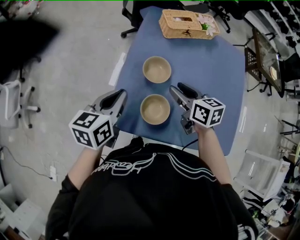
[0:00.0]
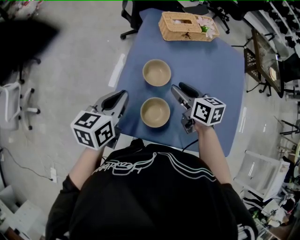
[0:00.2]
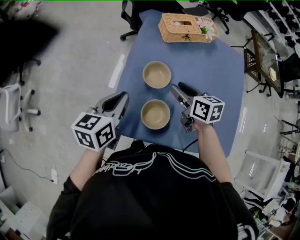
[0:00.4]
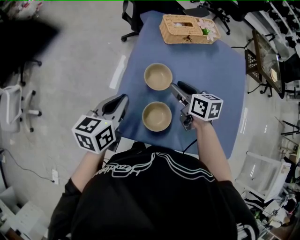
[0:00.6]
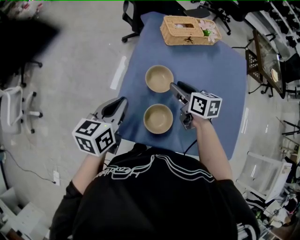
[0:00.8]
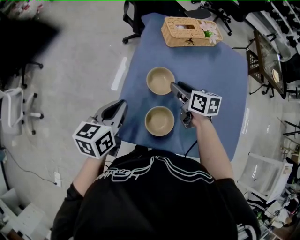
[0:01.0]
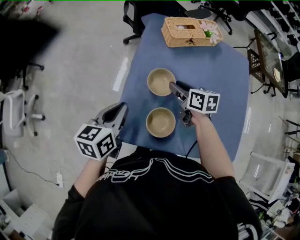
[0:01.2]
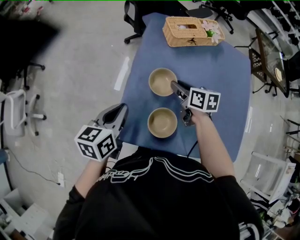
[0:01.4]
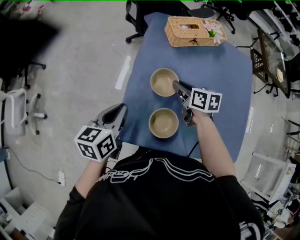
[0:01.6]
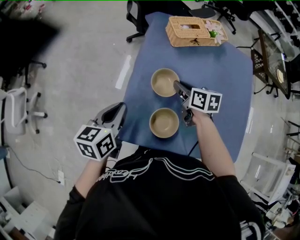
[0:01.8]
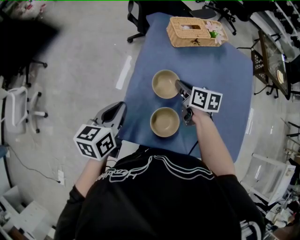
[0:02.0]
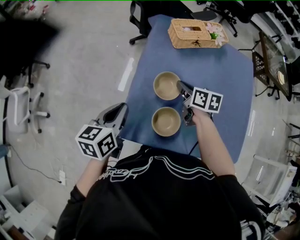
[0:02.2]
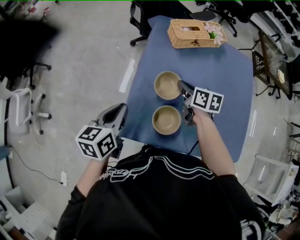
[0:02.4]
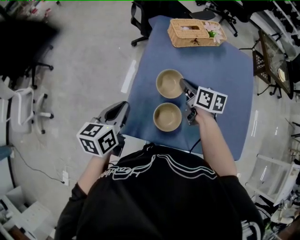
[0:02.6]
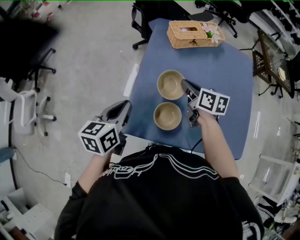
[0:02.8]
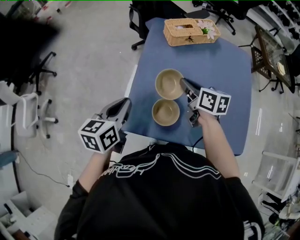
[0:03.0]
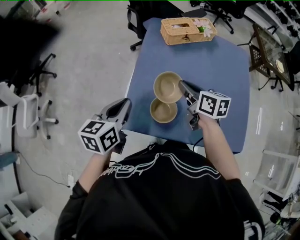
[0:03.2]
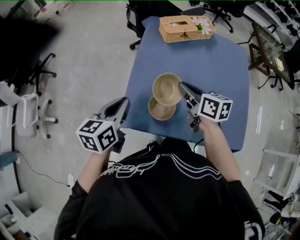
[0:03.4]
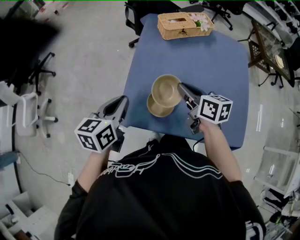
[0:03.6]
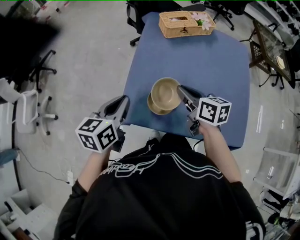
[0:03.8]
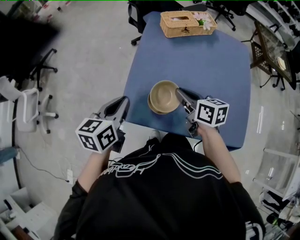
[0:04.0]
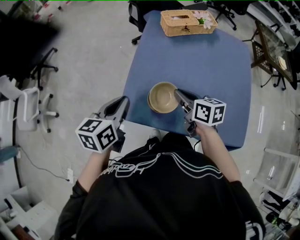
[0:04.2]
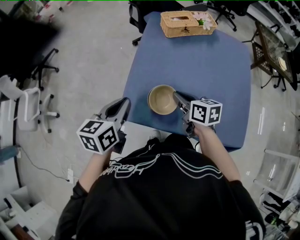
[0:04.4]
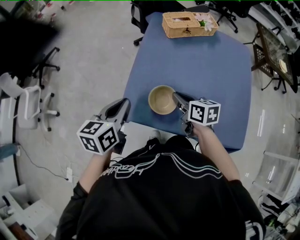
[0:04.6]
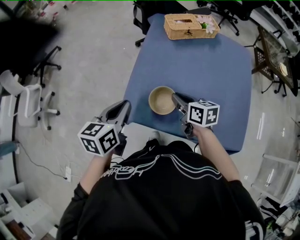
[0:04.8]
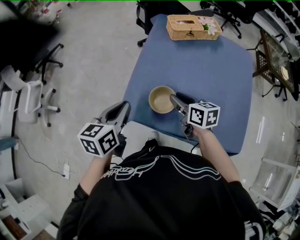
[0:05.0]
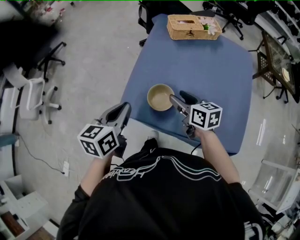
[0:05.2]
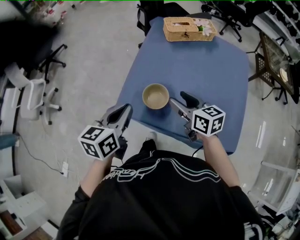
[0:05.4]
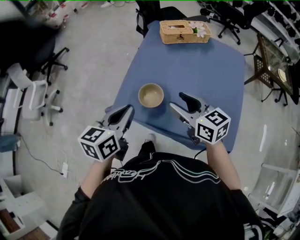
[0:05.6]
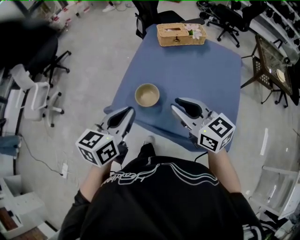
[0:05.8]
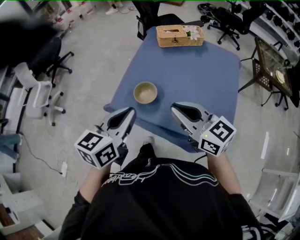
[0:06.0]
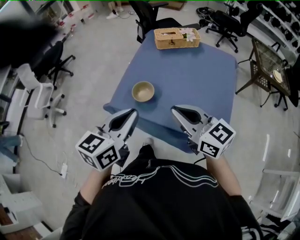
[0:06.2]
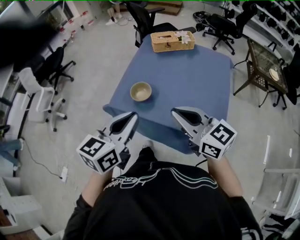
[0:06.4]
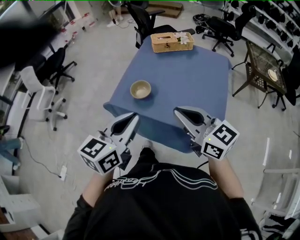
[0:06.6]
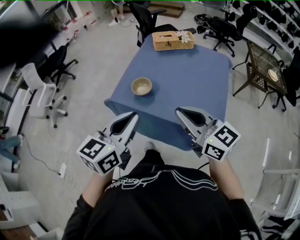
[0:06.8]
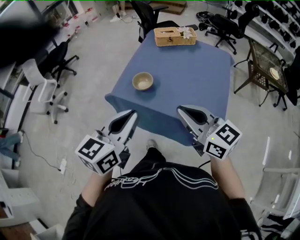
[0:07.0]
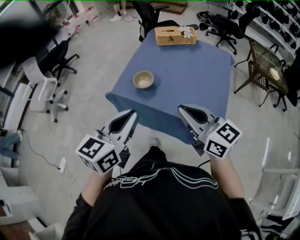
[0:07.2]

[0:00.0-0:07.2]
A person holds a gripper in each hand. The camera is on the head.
0:00.0 to 0:01.4: The right gripper heads forward and downward, covering roughly 10 cm.
0:01.4 to 0:02.8: The right gripper travels upward by approximately 5 cm, and closes up.
0:02.8 to 0:04.4: The right gripper shifts roughly 15 cm backward. Meanwhile the left gripper moves backward, some 5 cm.
0:04.4 to 0:05.8: The right gripper travels upward and backward by about 20 cm, swivels approximately 40 degrees, and opens and closes again; the left gripper travels backward, upward and to the right by approximately 20 cm.
0:05.8 to 0:07.2: The grippers both shift backward by roughly 20 cm.

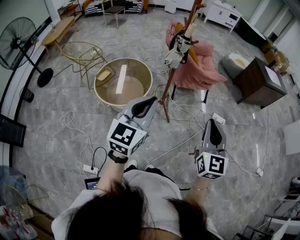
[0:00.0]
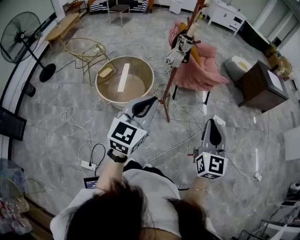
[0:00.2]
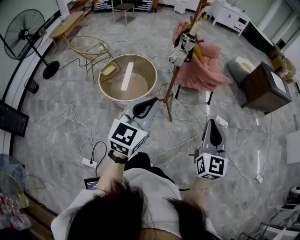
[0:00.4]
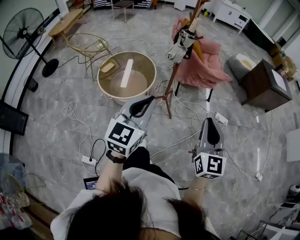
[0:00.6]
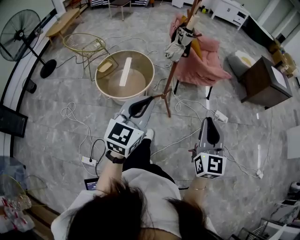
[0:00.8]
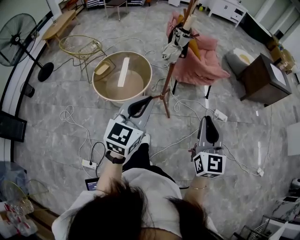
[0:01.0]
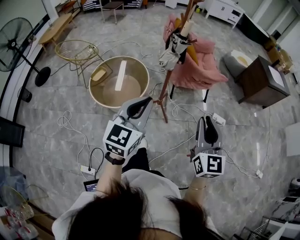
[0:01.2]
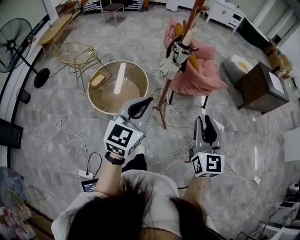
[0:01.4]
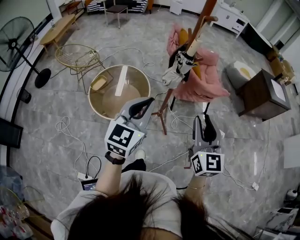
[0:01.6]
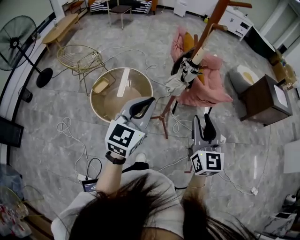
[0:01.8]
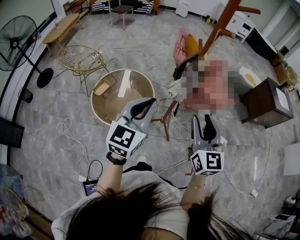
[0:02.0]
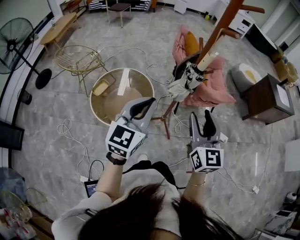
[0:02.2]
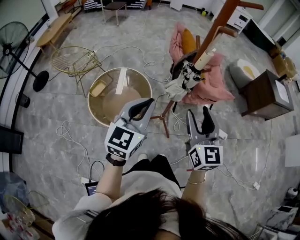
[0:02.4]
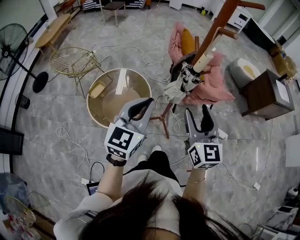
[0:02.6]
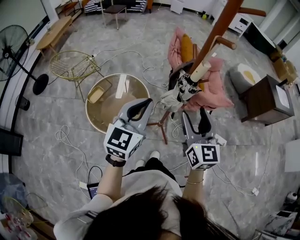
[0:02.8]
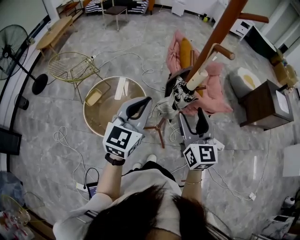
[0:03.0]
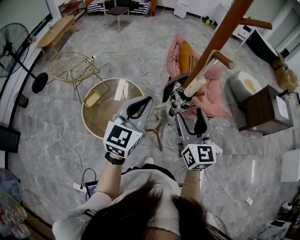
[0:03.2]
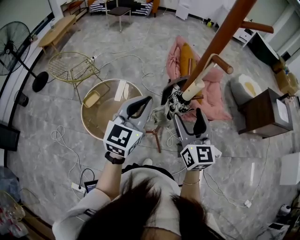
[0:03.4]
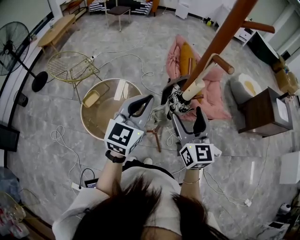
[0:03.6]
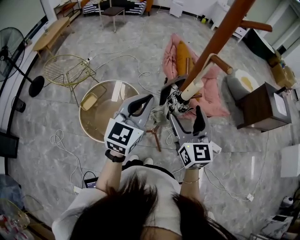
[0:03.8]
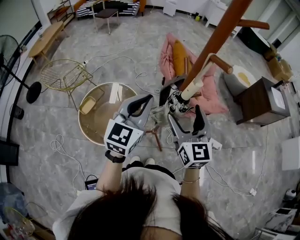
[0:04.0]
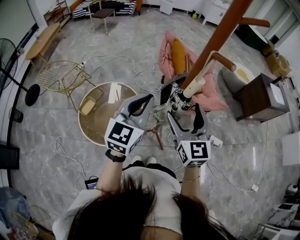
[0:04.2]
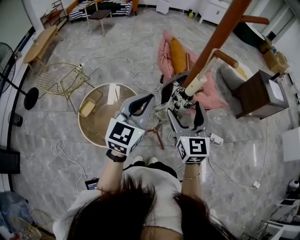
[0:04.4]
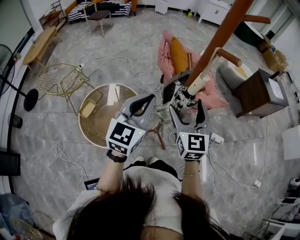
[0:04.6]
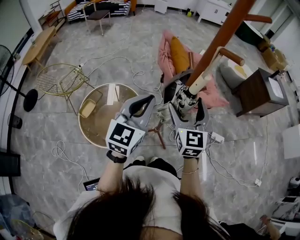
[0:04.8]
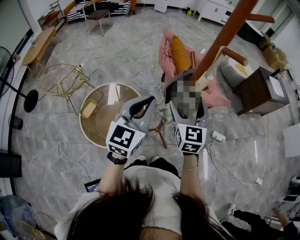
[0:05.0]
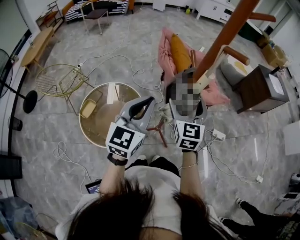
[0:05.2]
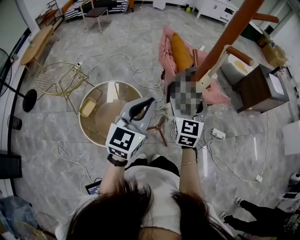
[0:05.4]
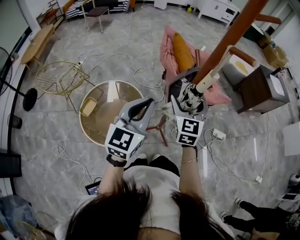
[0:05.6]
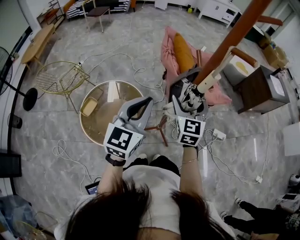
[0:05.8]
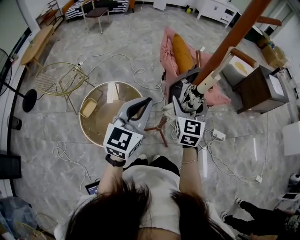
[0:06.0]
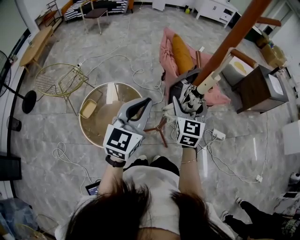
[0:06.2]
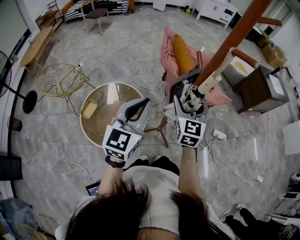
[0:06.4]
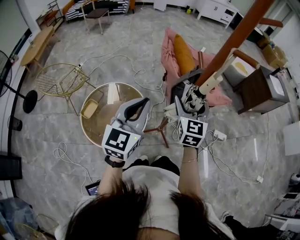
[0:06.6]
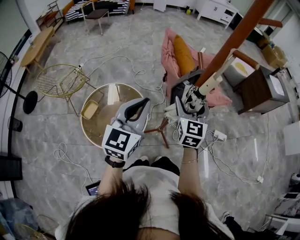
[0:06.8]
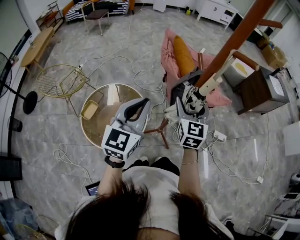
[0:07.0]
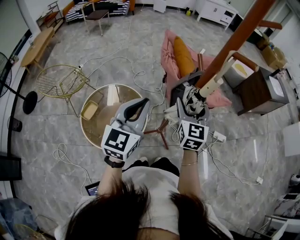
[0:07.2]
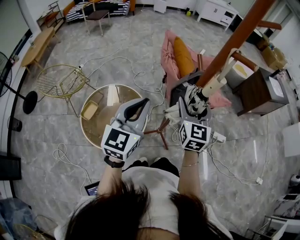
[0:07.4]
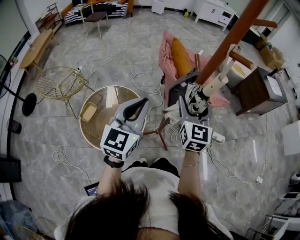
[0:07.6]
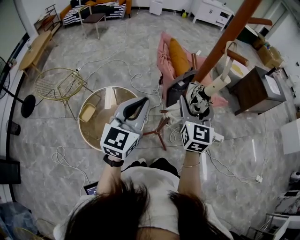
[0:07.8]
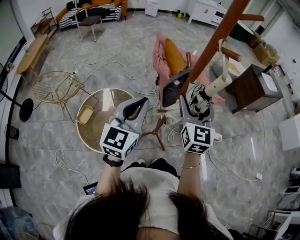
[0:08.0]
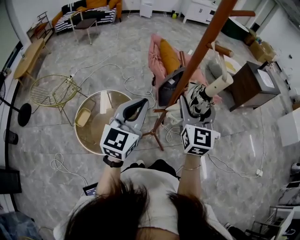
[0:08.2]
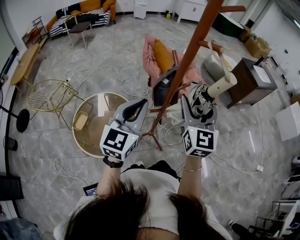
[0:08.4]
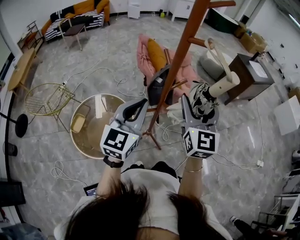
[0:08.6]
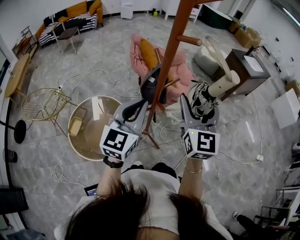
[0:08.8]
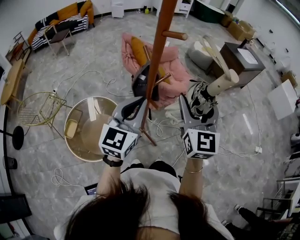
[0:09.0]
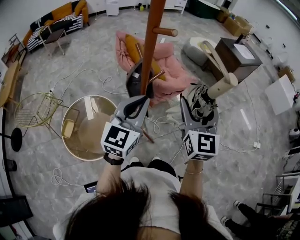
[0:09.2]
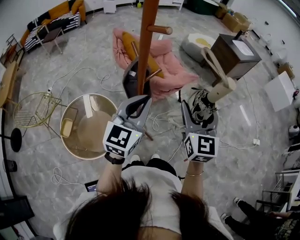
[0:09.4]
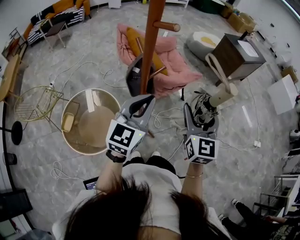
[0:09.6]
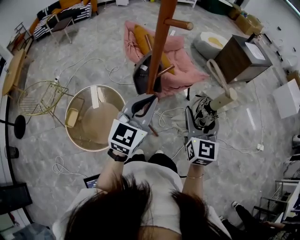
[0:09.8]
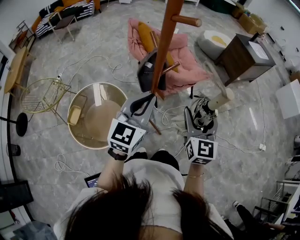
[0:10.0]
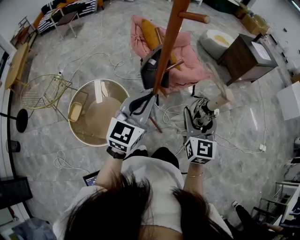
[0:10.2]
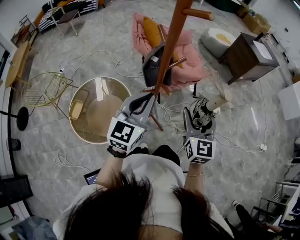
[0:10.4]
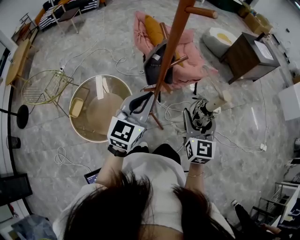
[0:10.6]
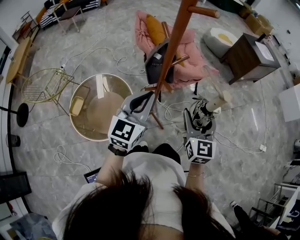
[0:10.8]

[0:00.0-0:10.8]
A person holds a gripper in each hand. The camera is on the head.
0:00.0 to 0:01.6: The grippers both shift forward by approximately 15 cm.
0:01.6 to 0:03.0: Both grippers travel together forward, approximately 20 cm. The right gripper opens its fingers.
0:03.0 to 0:04.6: The right gripper moves forward, approximately 5 cm.
0:04.6 to 0:06.2: The right gripper changes place by approximately 5 cm.
0:06.2 to 0:07.8: The right gripper travels upward by roughly 5 cm.
0:07.8 to 0:09.2: The left gripper shifts approximately 15 cm to the right. The right gripper moves to the right, upward and backward, some 20 cm.
0:09.2 to 0:10.8: The left gripper is displaced downward by some 10 cm. Meanwhile the right gripper heads downward, covering roughly 15 cm.

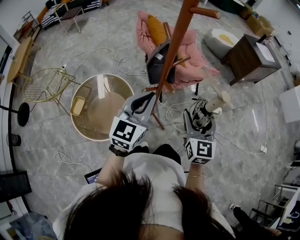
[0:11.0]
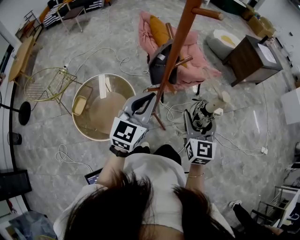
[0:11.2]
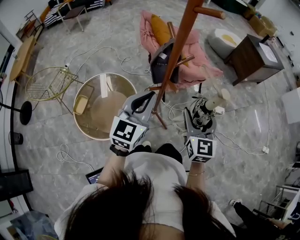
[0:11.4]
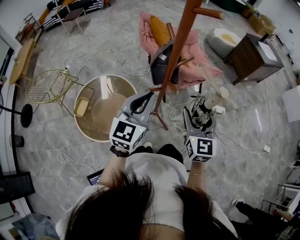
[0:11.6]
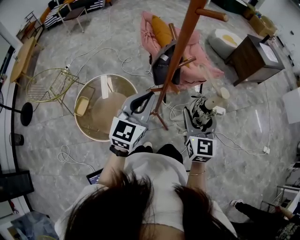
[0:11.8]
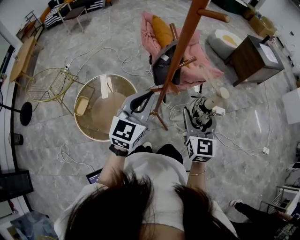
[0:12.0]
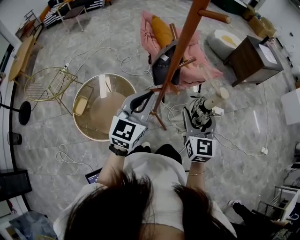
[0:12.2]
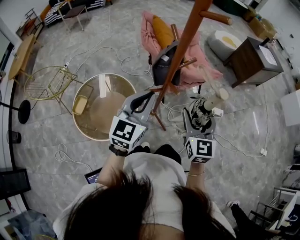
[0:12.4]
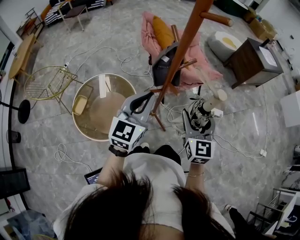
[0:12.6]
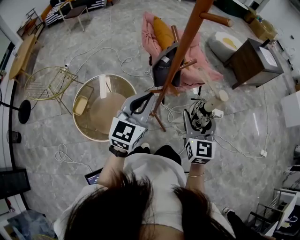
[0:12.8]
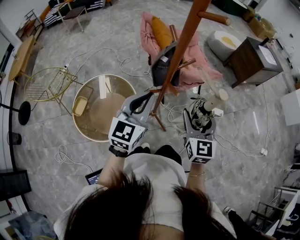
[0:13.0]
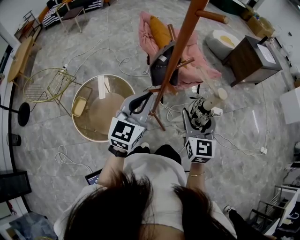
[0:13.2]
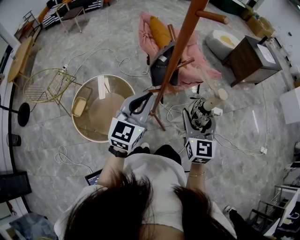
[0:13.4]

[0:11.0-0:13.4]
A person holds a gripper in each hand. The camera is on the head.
0:11.0 to 0:12.2: The grippers stay close to where they were, moving slightly.
0:12.2 to 0:13.4: Both grippers stay about where they are.

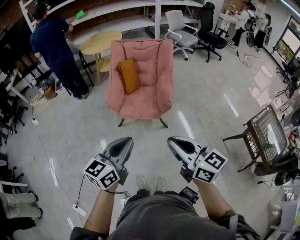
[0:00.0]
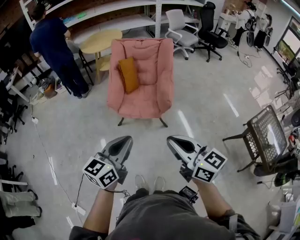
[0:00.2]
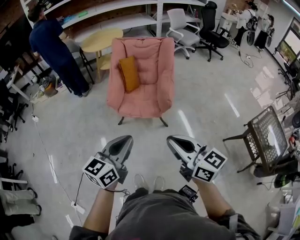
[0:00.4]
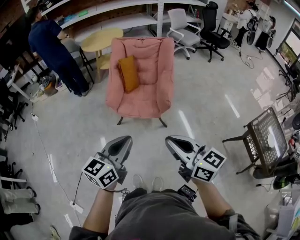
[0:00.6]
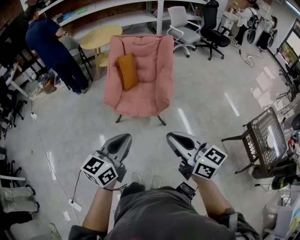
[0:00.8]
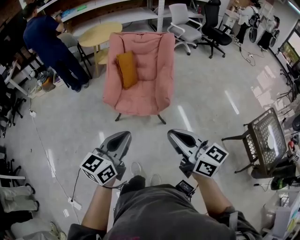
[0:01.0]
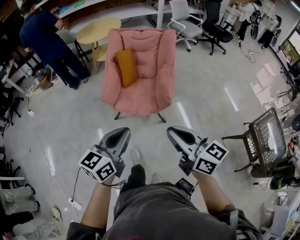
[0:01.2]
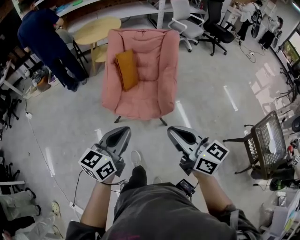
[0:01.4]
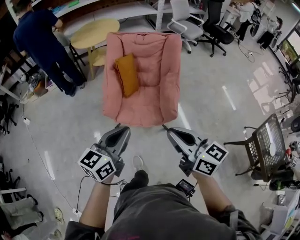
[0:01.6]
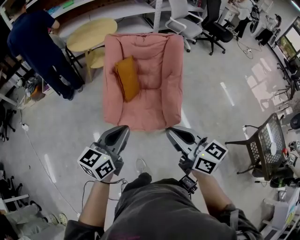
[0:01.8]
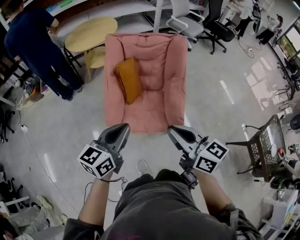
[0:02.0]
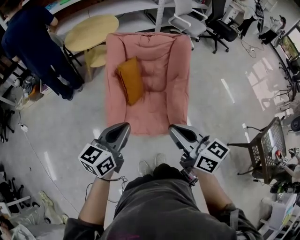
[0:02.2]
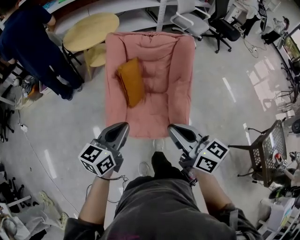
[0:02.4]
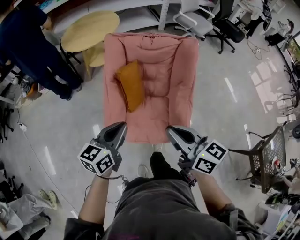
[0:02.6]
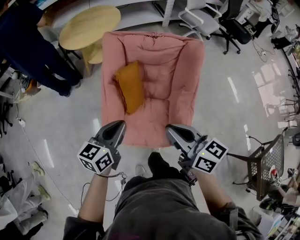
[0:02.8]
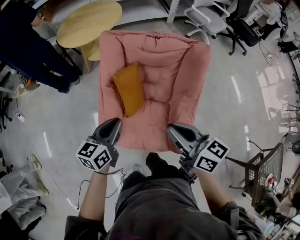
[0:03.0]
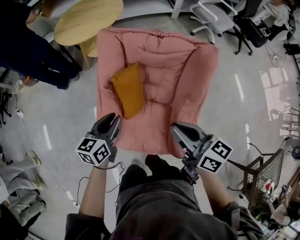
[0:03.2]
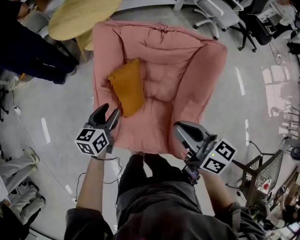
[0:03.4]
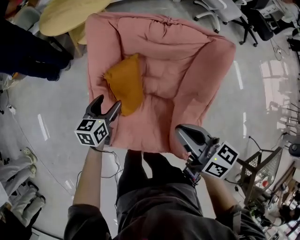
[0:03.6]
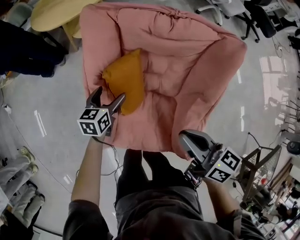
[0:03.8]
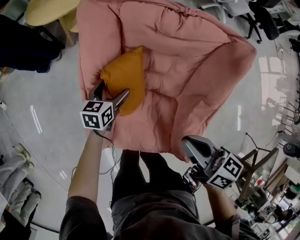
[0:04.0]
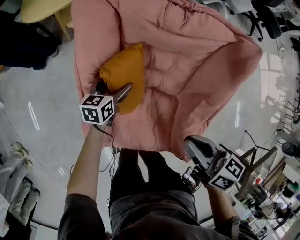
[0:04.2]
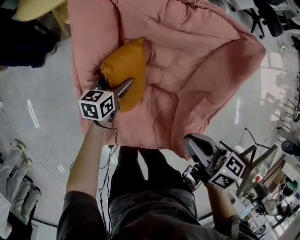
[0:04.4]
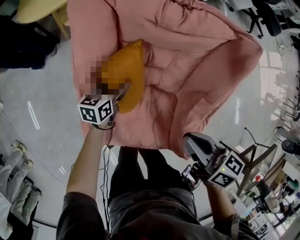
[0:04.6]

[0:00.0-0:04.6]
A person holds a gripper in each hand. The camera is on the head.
0:00.0 to 0:01.6: Both grippers move forward, approximately 25 cm.
0:01.6 to 0:03.0: Both grippers travel together forward, about 40 cm.
0:03.0 to 0:04.6: The left gripper moves downward and forward, about 40 cm, and opens up. Meanwhile the right gripper moves downward and forward, approximately 20 cm.
